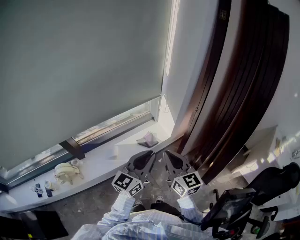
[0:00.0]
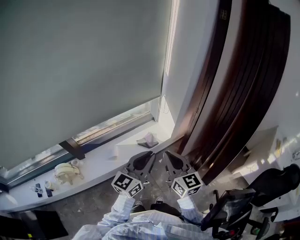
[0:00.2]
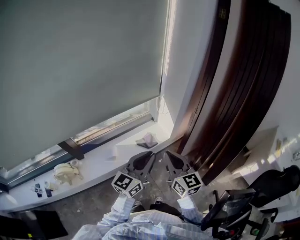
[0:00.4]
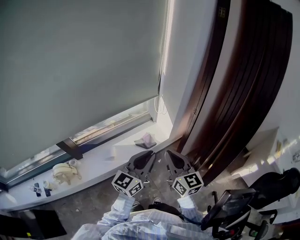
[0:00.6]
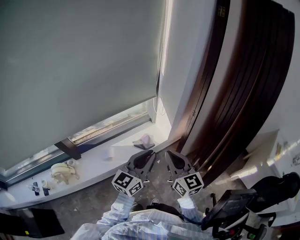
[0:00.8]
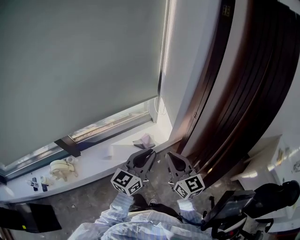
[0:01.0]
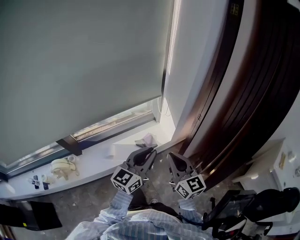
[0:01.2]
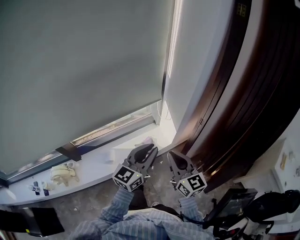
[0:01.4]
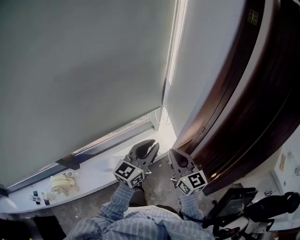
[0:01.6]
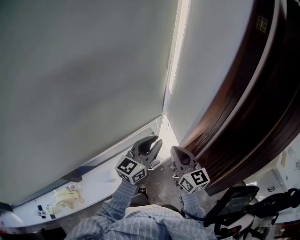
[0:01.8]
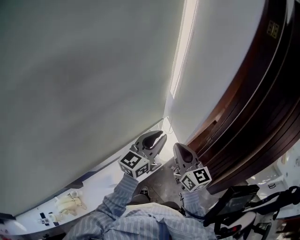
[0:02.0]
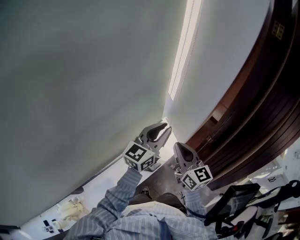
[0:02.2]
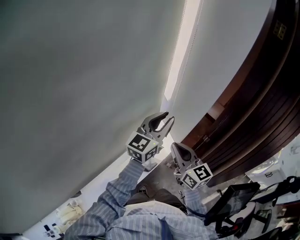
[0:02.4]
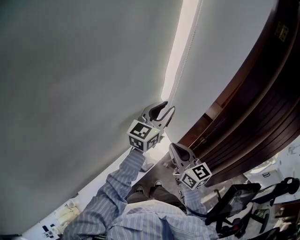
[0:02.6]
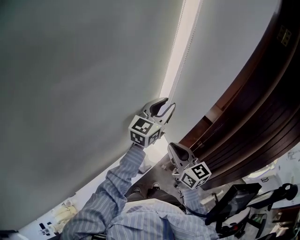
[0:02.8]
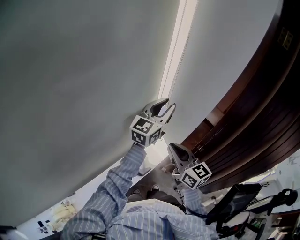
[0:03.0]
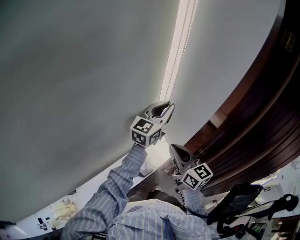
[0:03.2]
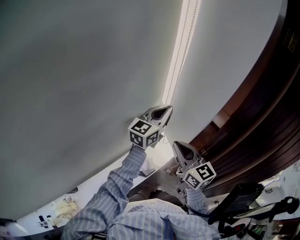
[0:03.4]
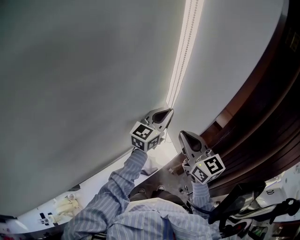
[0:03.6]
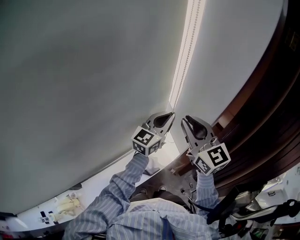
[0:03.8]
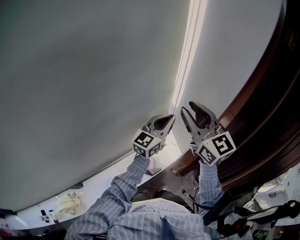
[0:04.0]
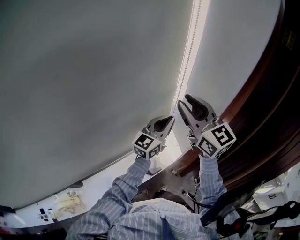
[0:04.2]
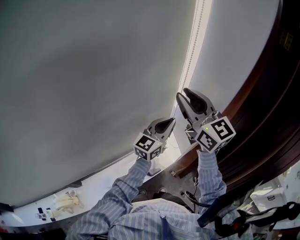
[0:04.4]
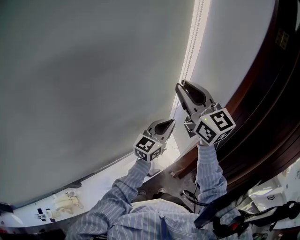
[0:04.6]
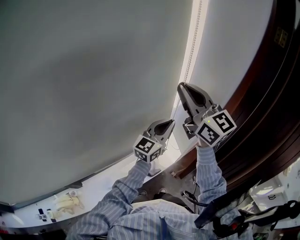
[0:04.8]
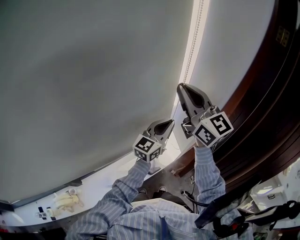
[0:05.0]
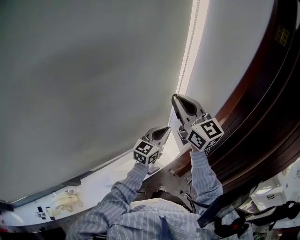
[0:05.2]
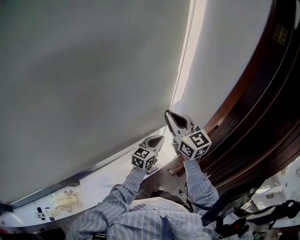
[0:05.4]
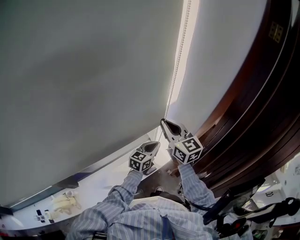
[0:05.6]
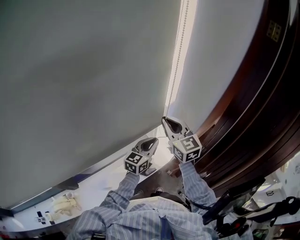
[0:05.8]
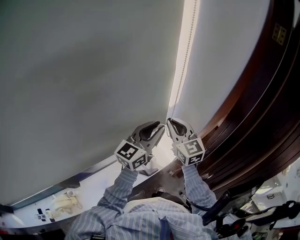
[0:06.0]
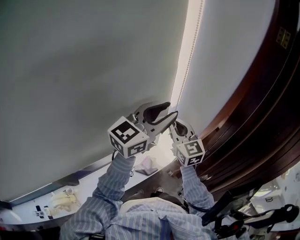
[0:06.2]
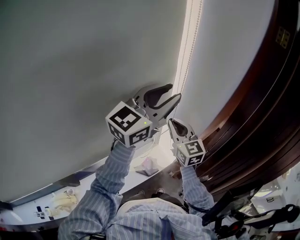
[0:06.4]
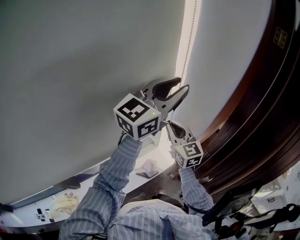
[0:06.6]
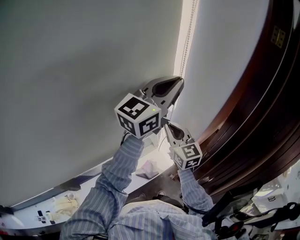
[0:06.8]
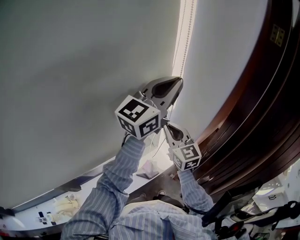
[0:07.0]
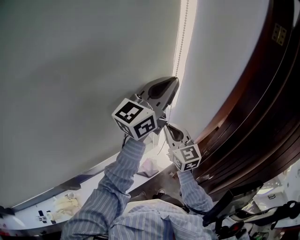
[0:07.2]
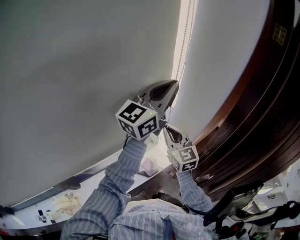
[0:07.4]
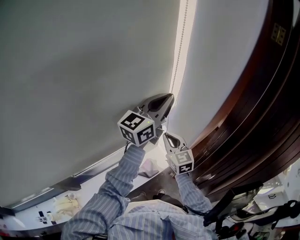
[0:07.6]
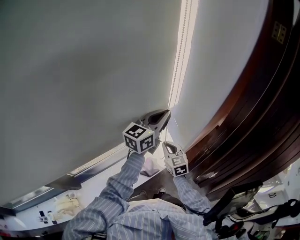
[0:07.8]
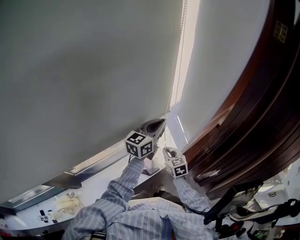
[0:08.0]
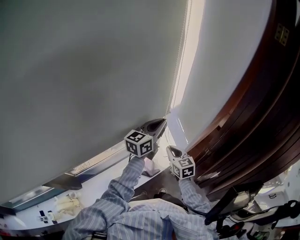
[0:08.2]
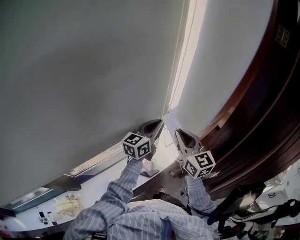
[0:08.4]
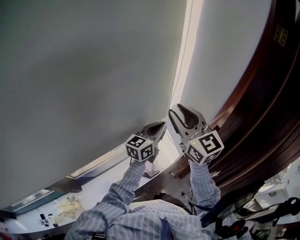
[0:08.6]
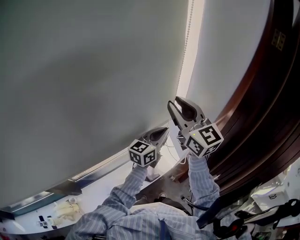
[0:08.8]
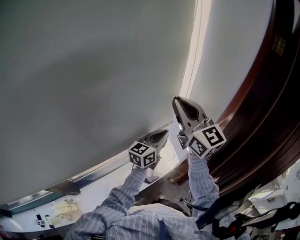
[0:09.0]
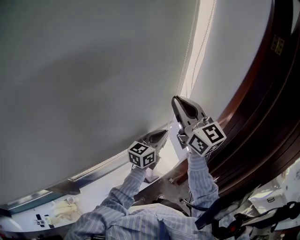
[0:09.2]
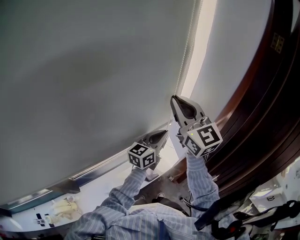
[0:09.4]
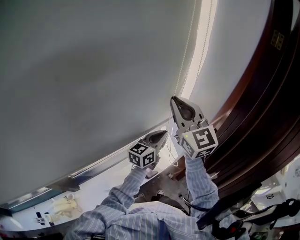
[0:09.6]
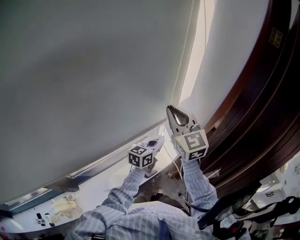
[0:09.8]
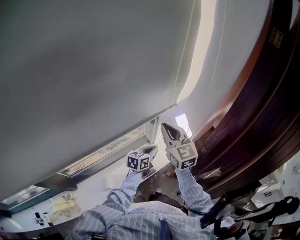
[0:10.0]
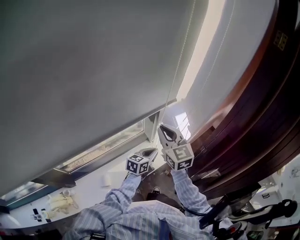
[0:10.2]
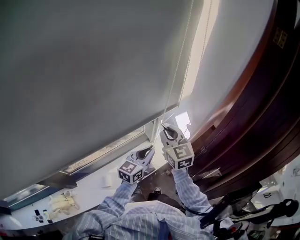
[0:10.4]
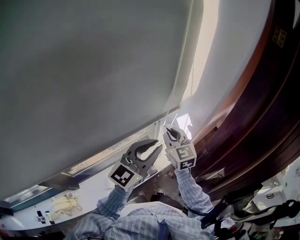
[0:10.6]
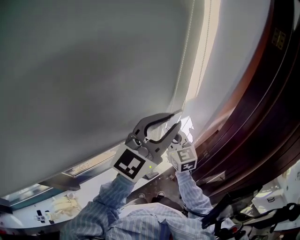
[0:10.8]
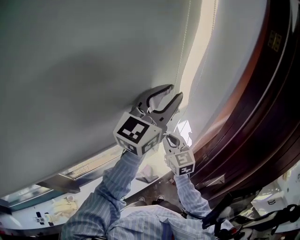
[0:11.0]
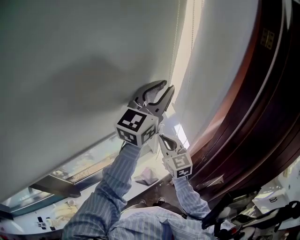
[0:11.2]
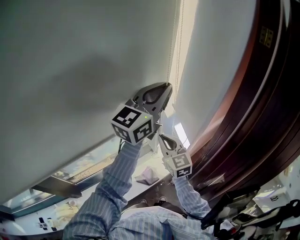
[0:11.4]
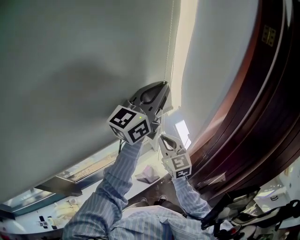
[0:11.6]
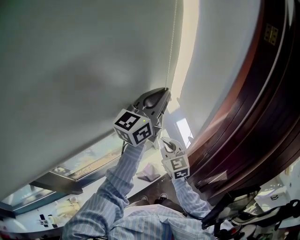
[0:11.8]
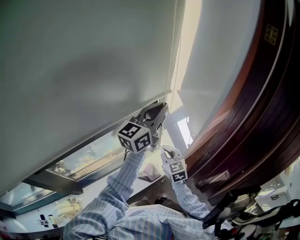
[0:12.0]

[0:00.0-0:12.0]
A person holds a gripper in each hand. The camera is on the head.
0:00.0 to 0:01.6: Both grippers move forward, about 20 cm.
0:01.6 to 0:03.0: The left gripper travels forward by about 35 cm, while the right gripper goes approximately 20 cm forward.
0:03.0 to 0:04.4: The left gripper shifts about 5 cm backward, and closes. Meanwhile the right gripper shifts approximately 20 cm upward, changes its angle by some 30 degrees, and opens up.
0:04.4 to 0:06.0: The left gripper moves about 20 cm downward and comes back; the right gripper moves downward, about 15 cm, and closes up.
0:06.0 to 0:07.6: The left gripper is displaced upward and forward by some 15 cm, while the right gripper travels downward by about 10 cm.
0:07.6 to 0:09.0: The left gripper is displaced downward by roughly 15 cm, while the right gripper heads upward, covering some 25 cm, and swivels about 30 degrees.
0:09.0 to 0:10.4: The right gripper moves downward, roughly 20 cm, and changes its angle by about 20 degrees. Meanwhile the left gripper moves downward and backward, approximately 15 cm.
0:10.4 to 0:12.0: The right gripper is displaced downward by roughly 10 cm. Meanwhile the left gripper moves upward, some 25 cm.

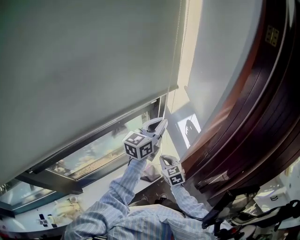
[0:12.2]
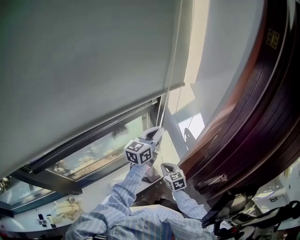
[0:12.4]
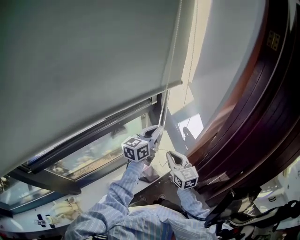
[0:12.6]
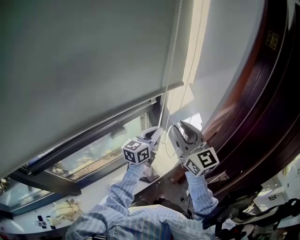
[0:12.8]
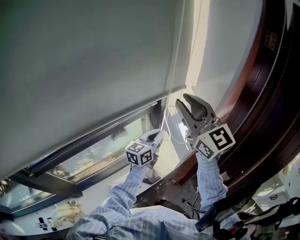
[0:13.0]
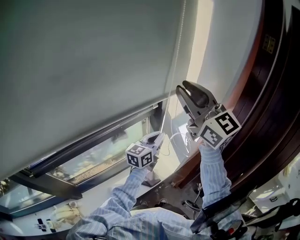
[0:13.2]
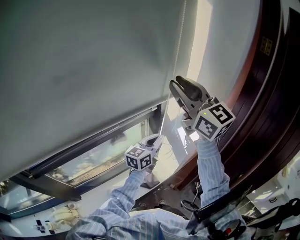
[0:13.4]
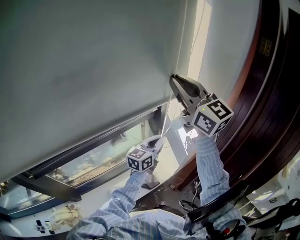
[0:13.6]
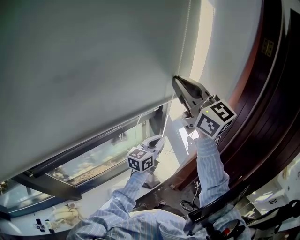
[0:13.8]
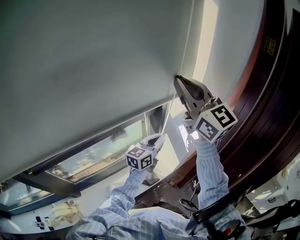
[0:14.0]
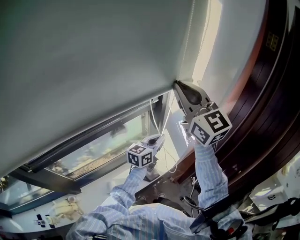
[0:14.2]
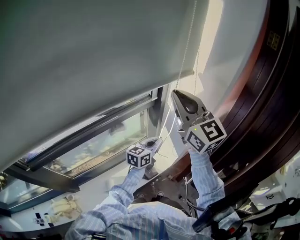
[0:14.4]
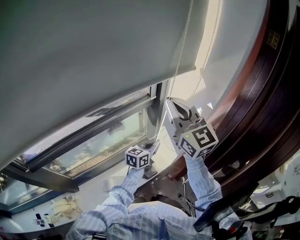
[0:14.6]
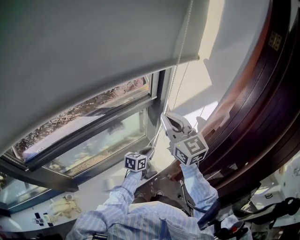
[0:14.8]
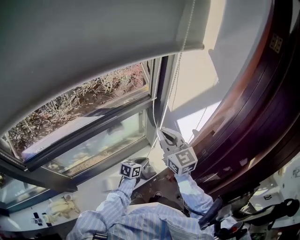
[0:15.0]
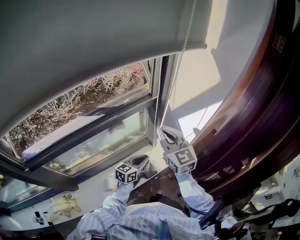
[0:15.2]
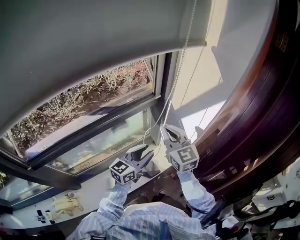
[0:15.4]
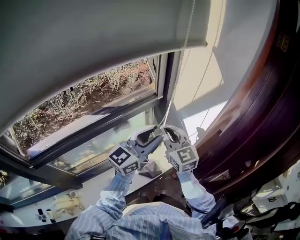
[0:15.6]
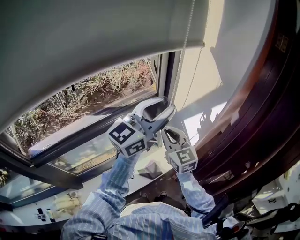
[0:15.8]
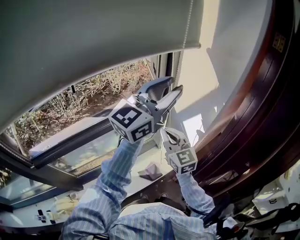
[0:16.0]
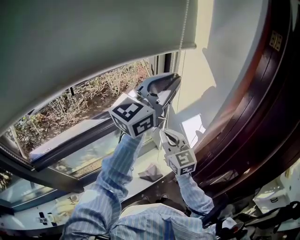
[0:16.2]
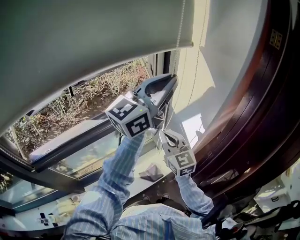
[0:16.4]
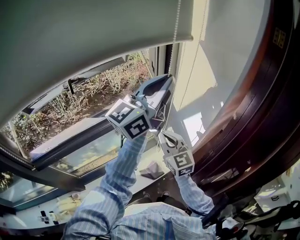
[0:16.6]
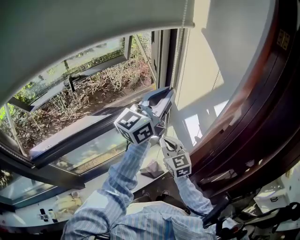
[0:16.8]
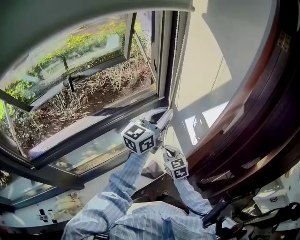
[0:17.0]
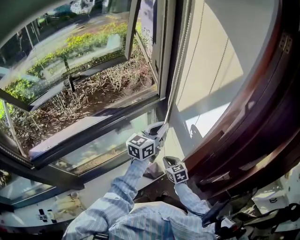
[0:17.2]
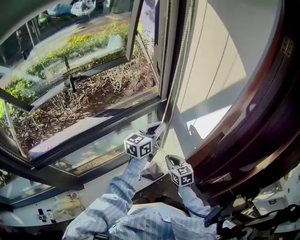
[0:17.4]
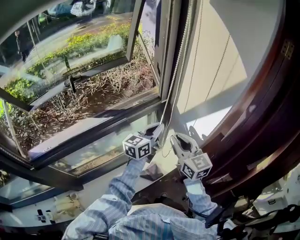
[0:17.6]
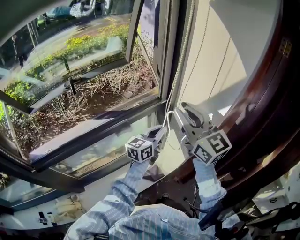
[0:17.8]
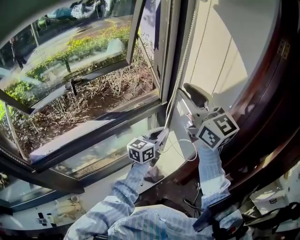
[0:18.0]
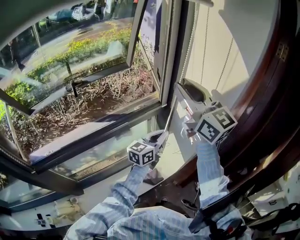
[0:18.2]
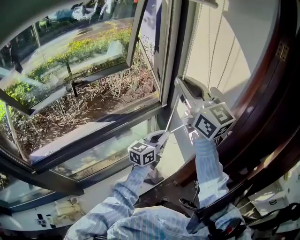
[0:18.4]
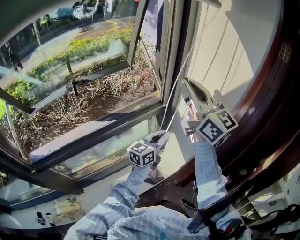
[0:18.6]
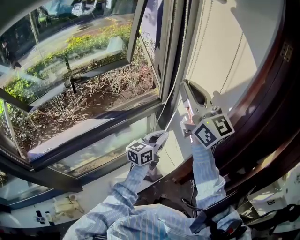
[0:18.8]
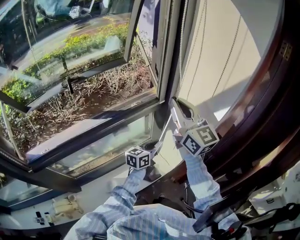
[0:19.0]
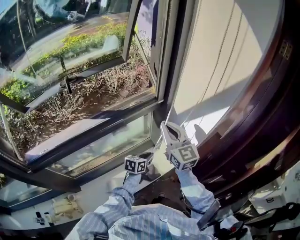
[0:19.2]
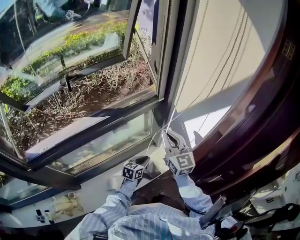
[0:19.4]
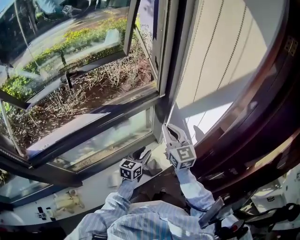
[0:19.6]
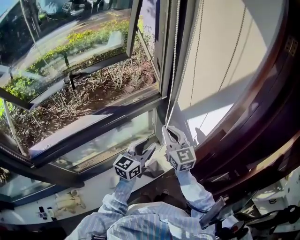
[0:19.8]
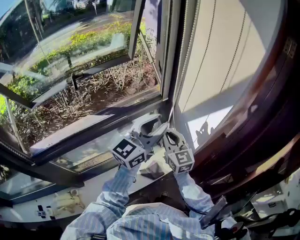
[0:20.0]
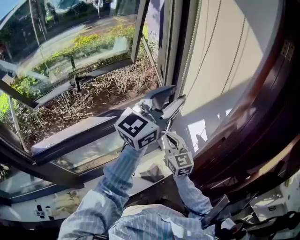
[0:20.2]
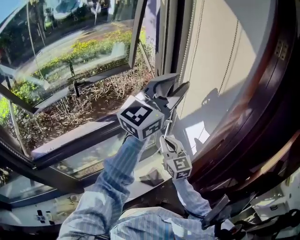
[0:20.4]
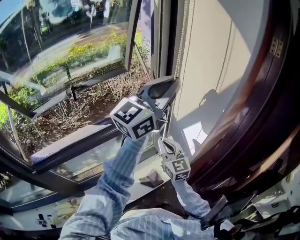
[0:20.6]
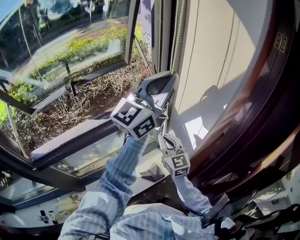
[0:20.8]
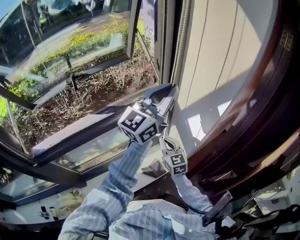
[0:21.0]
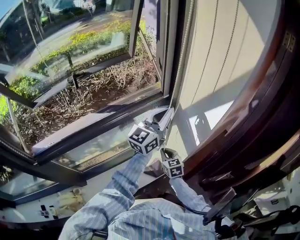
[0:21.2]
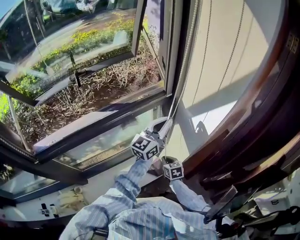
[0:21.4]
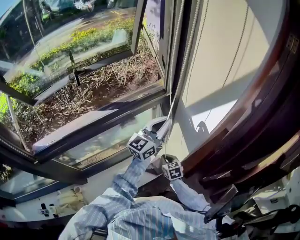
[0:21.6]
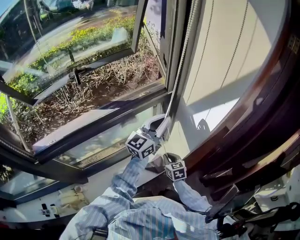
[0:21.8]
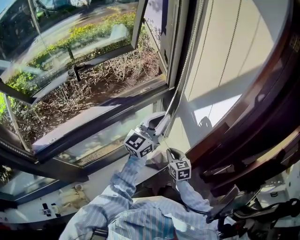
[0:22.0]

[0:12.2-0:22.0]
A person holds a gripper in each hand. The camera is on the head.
0:12.2 to 0:13.6: The left gripper heads downward, covering approximately 5 cm, while the right gripper heads upward, covering about 50 cm, and points its fingers some 40 degrees further upward.
0:13.6 to 0:15.0: The two grippers go some 25 cm downward. The left gripper rotates about 30 degrees.
0:15.0 to 0:16.4: The left gripper shifts roughly 50 cm upward, tips its fingers upward by about 50 degrees, and opens, then closes once more.
0:16.4 to 0:17.8: The right gripper travels upward by some 15 cm, and opens up; the left gripper heads downward, covering some 30 cm, and turns by some 30 degrees.
0:17.8 to 0:19.2: The left gripper goes about 20 cm downward, and changes its angle by roughly 30 degrees; the right gripper goes about 15 cm downward.
0:19.2 to 0:20.6: The left gripper moves upward, about 50 cm, points its fingers some 50 degrees further upward, and opens and closes again, while the right gripper moves downward, some 5 cm.
0:20.6 to 0:22.0: Both grippers move downward, about 20 cm. The right gripper swivels approximately 30 degrees.

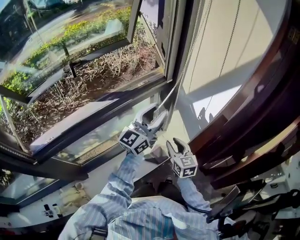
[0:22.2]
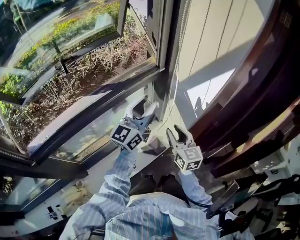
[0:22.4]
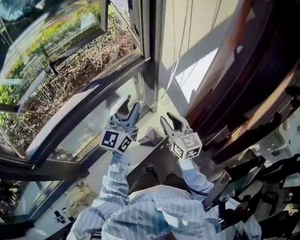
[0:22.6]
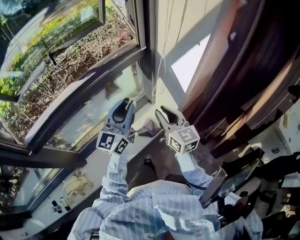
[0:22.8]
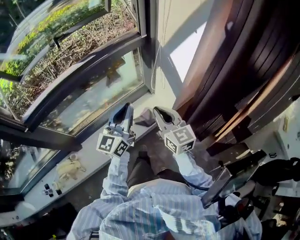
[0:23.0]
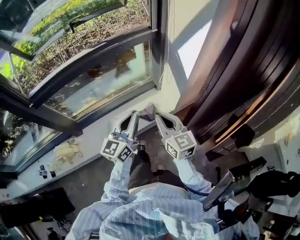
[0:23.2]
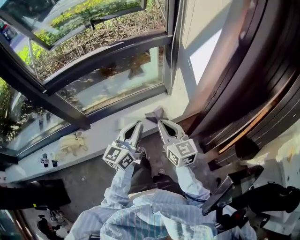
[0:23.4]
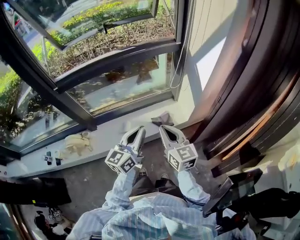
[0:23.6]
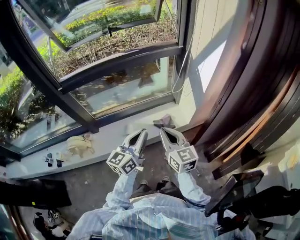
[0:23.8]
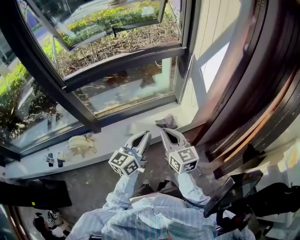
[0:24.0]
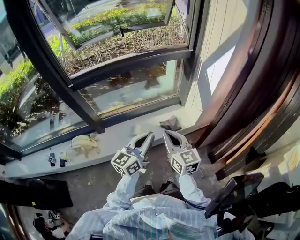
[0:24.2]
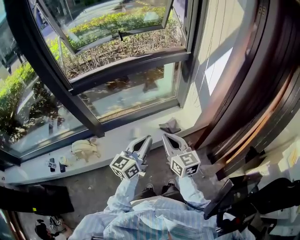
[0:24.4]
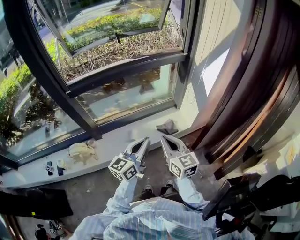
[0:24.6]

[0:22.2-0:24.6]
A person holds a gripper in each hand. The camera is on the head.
0:22.2 to 0:23.4: The grippers both shift backward by some 30 cm. The right gripper rotates some 20 degrees, and closes up, while the left gripper turns by about 30 degrees, and closes up.
0:23.4 to 0:24.6: The grippers both shift to the left and backward by about 15 cm.
